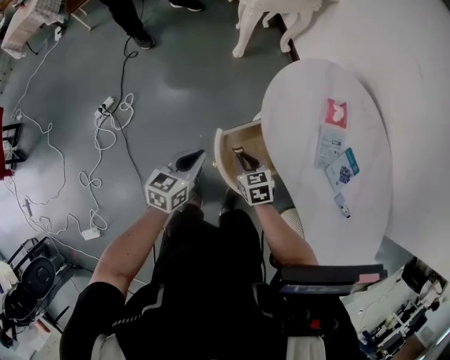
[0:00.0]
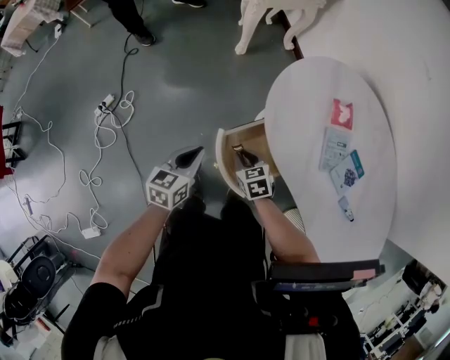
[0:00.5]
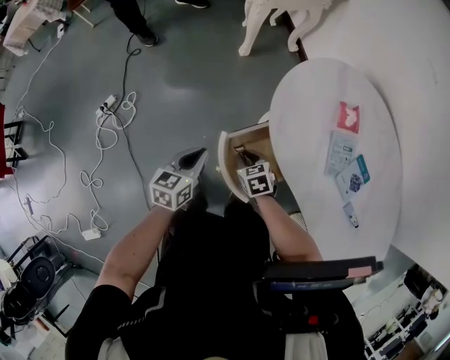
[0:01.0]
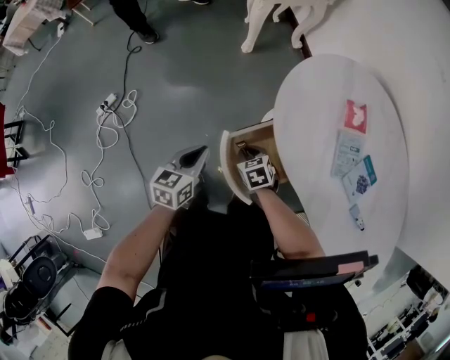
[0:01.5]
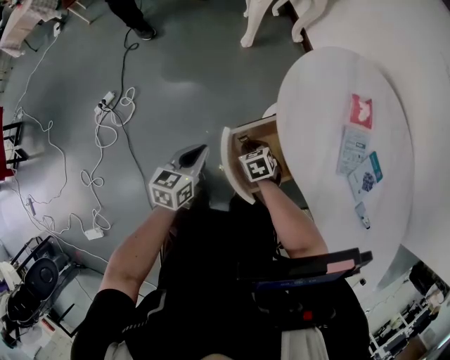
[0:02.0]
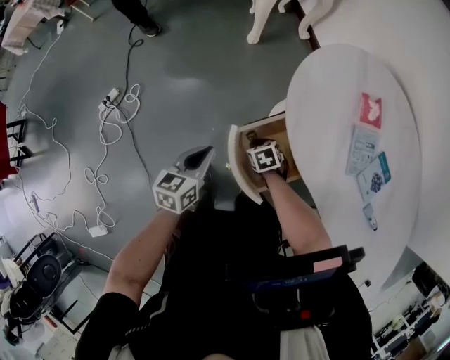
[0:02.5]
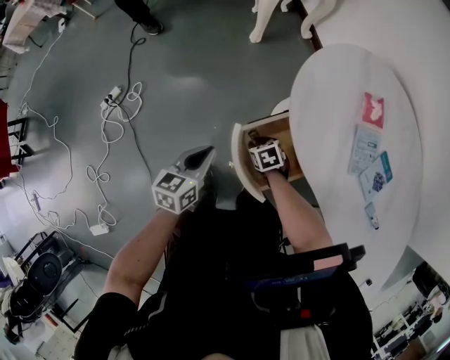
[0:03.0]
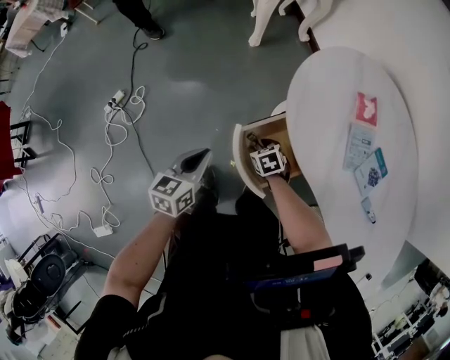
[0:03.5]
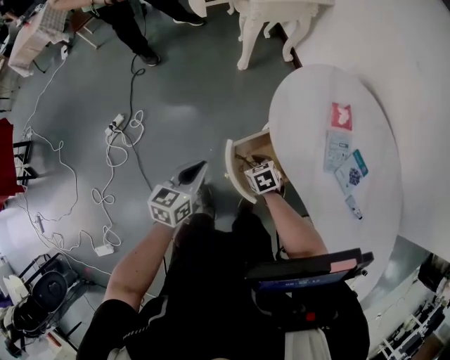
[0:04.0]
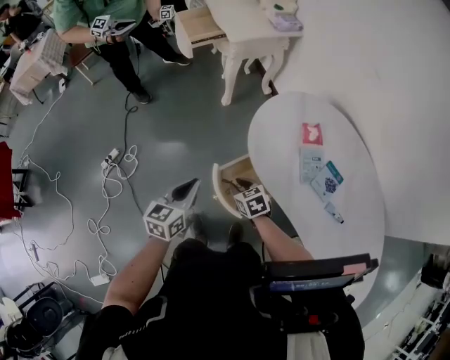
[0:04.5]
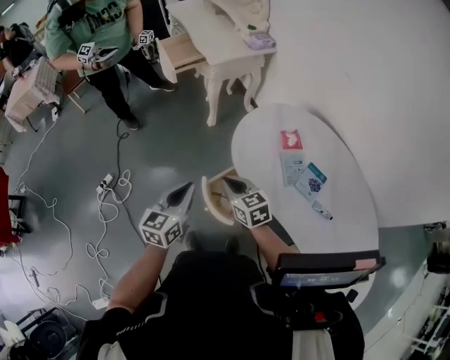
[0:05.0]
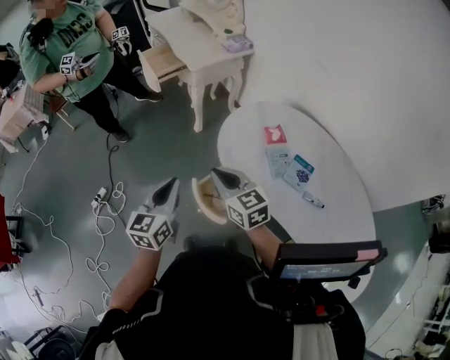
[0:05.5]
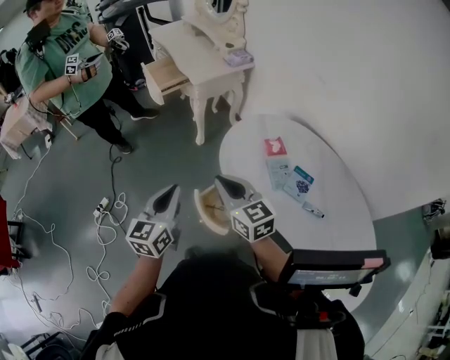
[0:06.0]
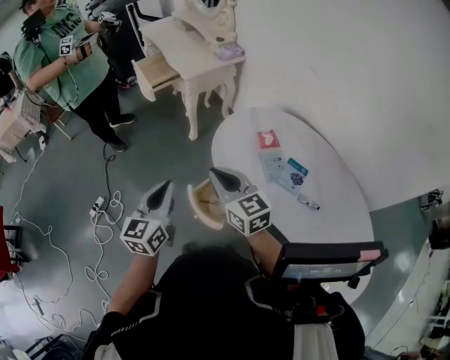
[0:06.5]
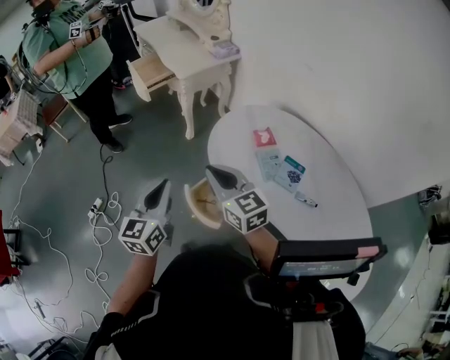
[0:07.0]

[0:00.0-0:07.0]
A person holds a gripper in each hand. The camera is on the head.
0:00.0 to 0:02.0: The right gripper goes approximately 15 cm downward. The left gripper goes approximately 10 cm downward.
0:02.0 to 0:03.5: The left gripper shifts by about 5 cm. The right gripper opens its fingers.
0:03.5 to 0:05.0: The left gripper shifts some 20 cm upward, and rotates approximately 20 degrees, while the right gripper travels upward by some 35 cm, angles its fingers upward, by about 40 degrees, and closes up.
0:05.0 to 0:07.0: The left gripper is displaced upward by about 10 cm. The right gripper moves upward, some 15 cm.

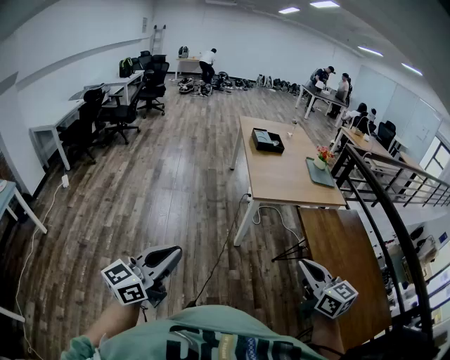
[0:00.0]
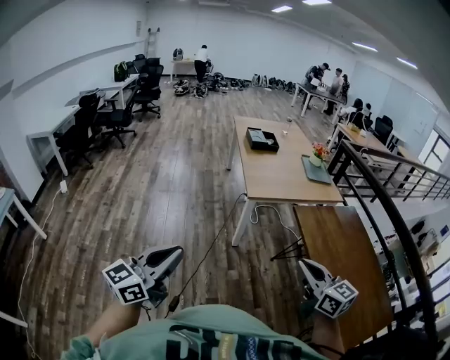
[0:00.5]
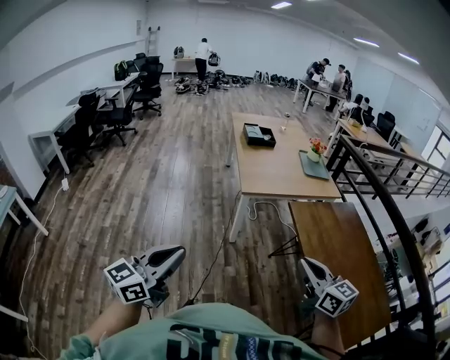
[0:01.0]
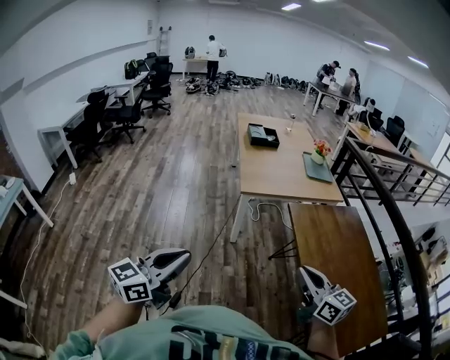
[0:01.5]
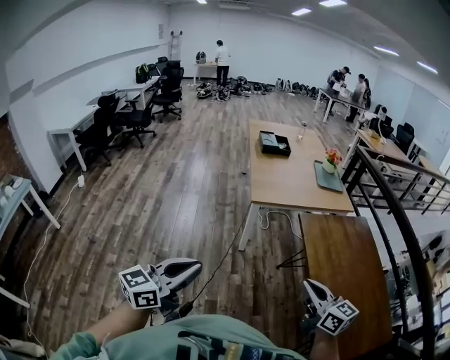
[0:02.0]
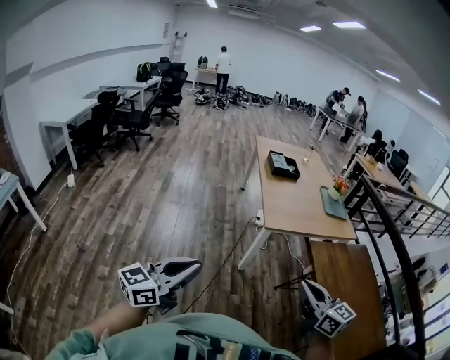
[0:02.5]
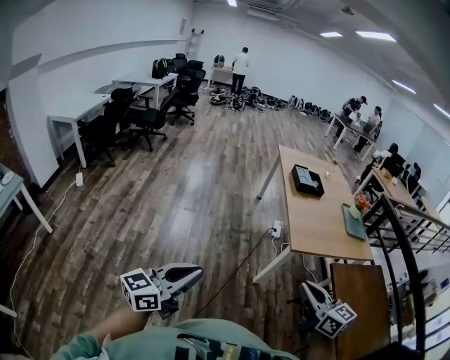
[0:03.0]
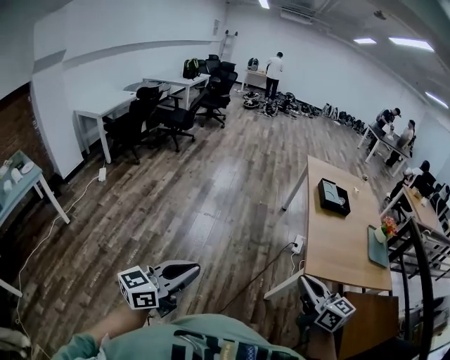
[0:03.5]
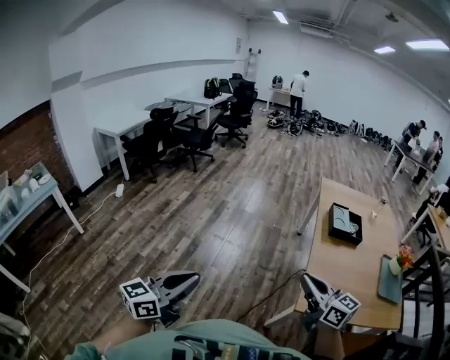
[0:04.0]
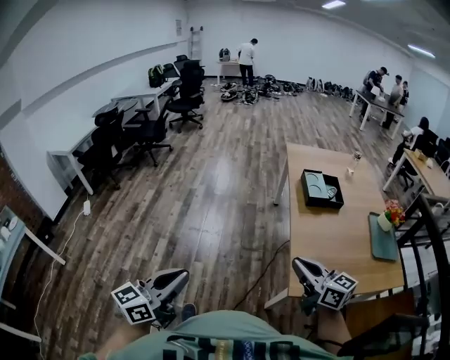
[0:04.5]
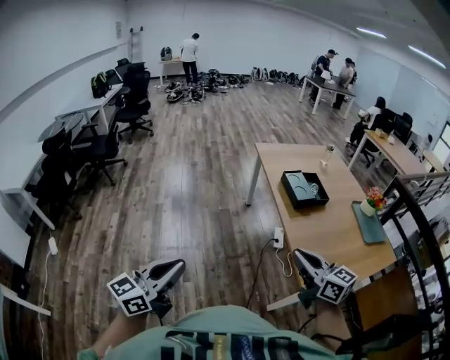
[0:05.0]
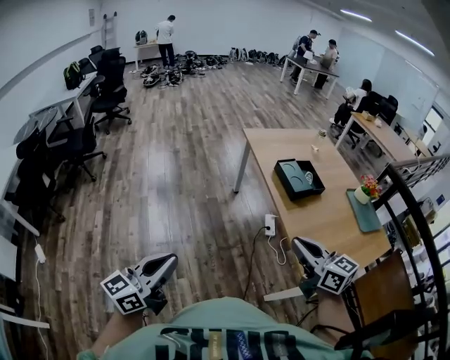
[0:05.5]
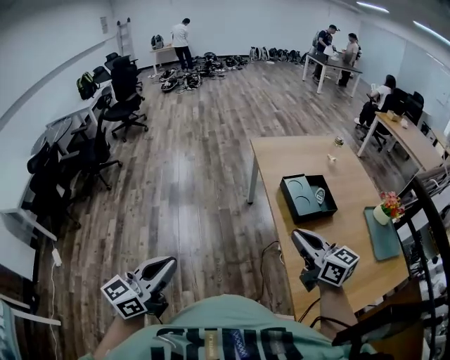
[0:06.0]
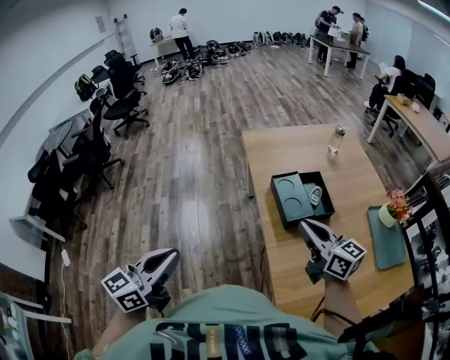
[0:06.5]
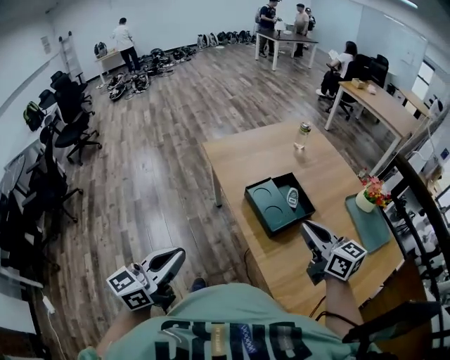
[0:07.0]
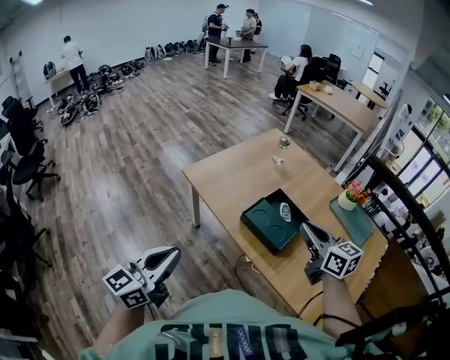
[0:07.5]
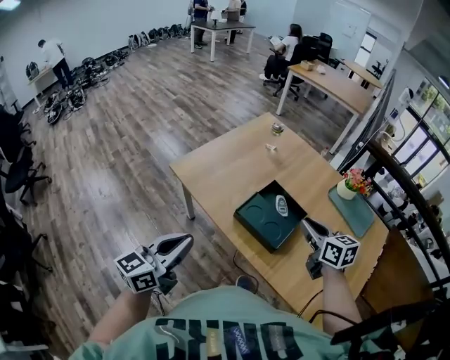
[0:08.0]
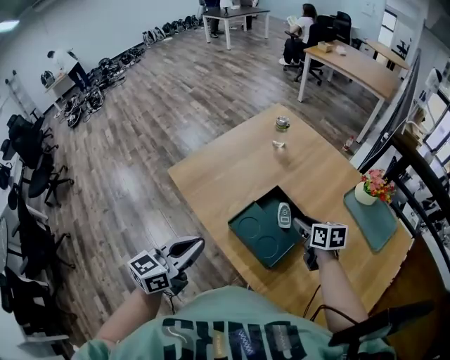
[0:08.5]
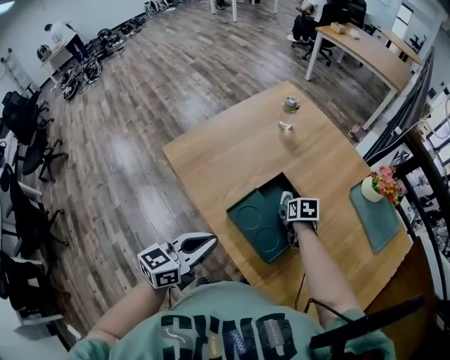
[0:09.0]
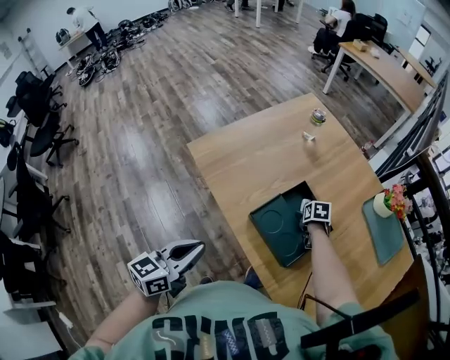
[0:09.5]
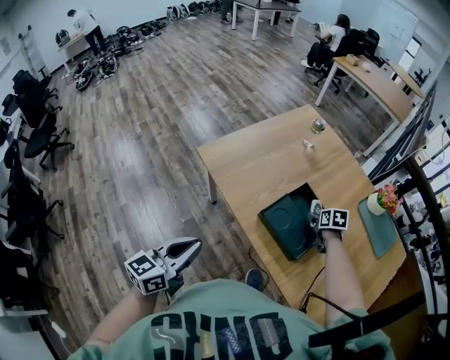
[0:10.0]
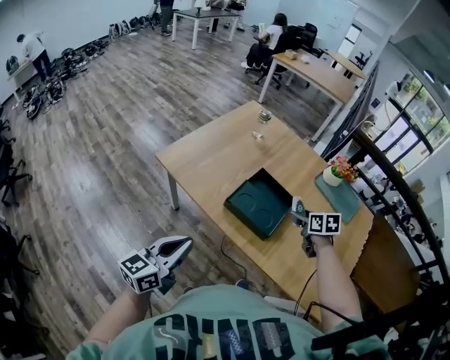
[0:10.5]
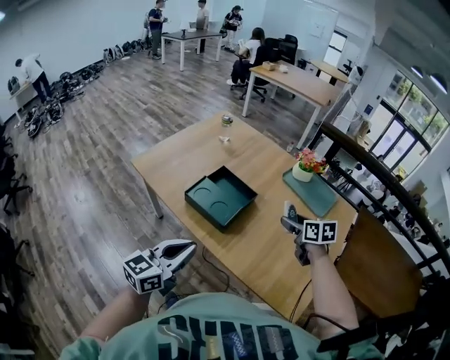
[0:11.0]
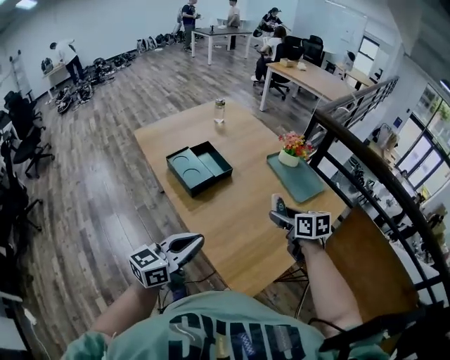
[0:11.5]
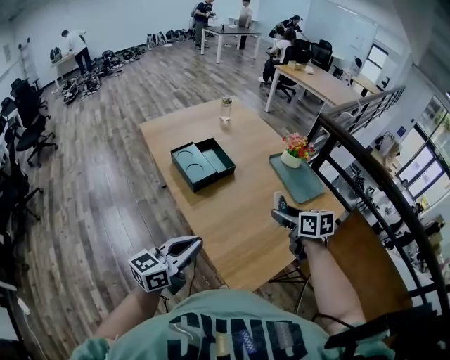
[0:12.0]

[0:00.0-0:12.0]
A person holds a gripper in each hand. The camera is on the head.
0:00.0 to 0:02.0: The grippers both shift to the right by roughly 15 cm.
0:02.0 to 0:04.0: The pair of grippers is taken roughly 50 cm. The left gripper rotates approximately 20 degrees; the right gripper turns by approximately 30 degrees.
0:04.0 to 0:06.0: The right gripper changes place by about 40 cm, and rotates some 30 degrees, while the left gripper shifts by approximately 50 cm, and turns by roughly 20 degrees.
0:06.0 to 0:08.0: The right gripper shifts by about 30 cm, and changes its angle by approximately 50 degrees. Meanwhile the left gripper shifts by approximately 50 cm, and turns by roughly 40 degrees.
0:08.0 to 0:10.0: The left gripper goes some 5 cm downward, and moves about 15 cm to the right and comes back. The right gripper shifts roughly 30 cm downward and forward, tilts its fingers approximately 30 degrees downward, and opens its fingers.
0:10.0 to 0:12.0: The pair of grippers is taken to the right and backward, approximately 50 cm. The right gripper heads upward, covering approximately 20 cm, and turns by some 30 degrees.

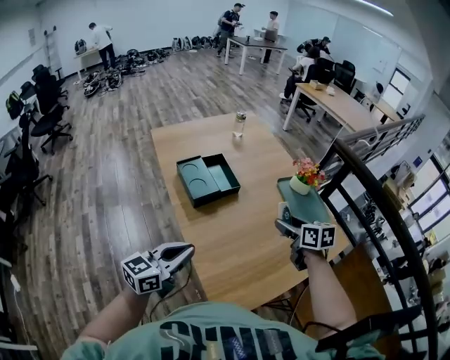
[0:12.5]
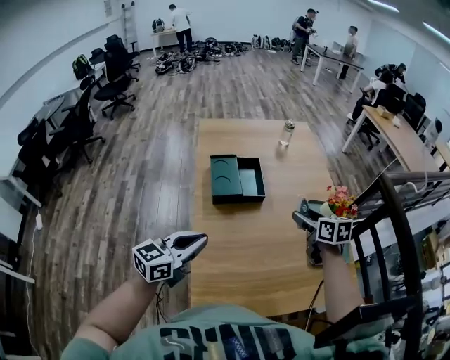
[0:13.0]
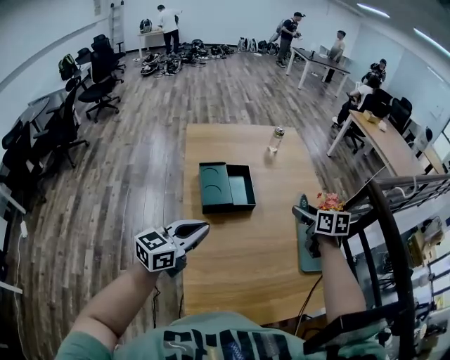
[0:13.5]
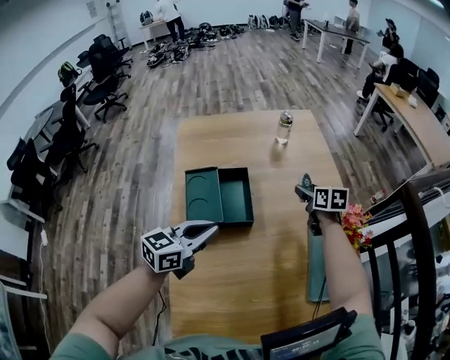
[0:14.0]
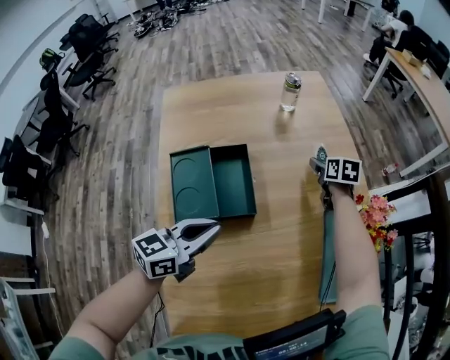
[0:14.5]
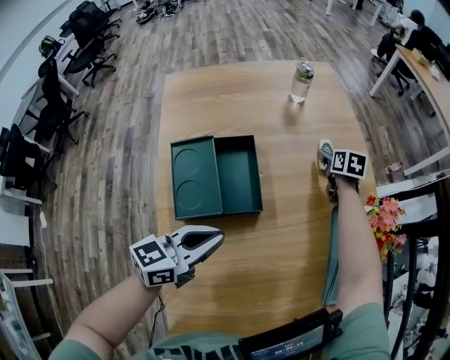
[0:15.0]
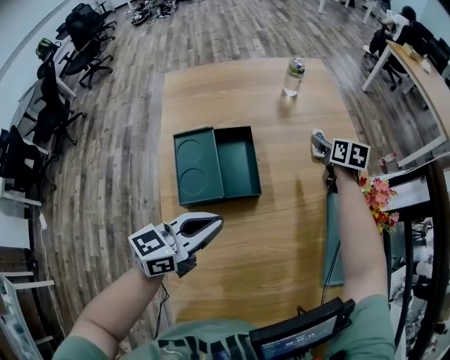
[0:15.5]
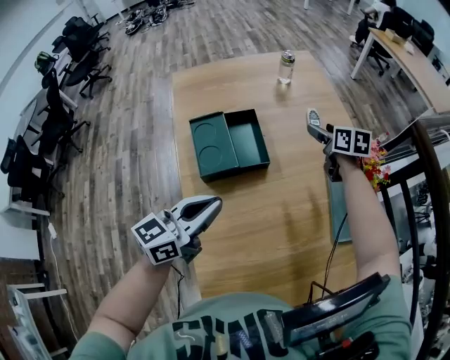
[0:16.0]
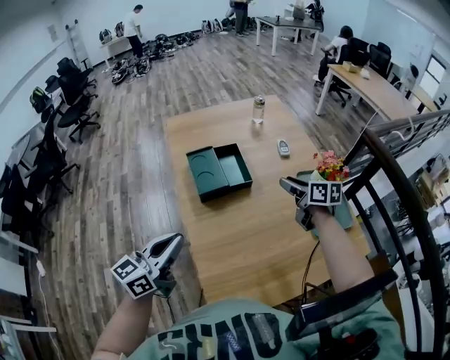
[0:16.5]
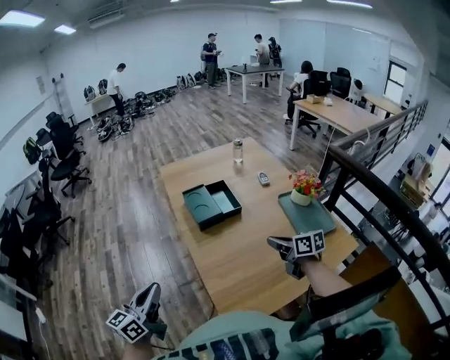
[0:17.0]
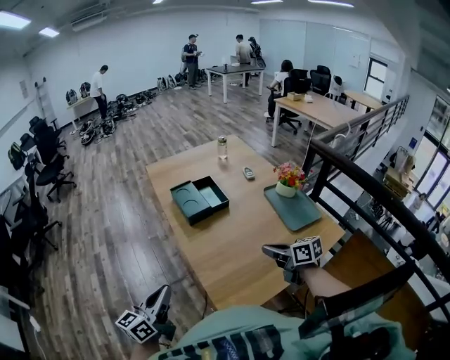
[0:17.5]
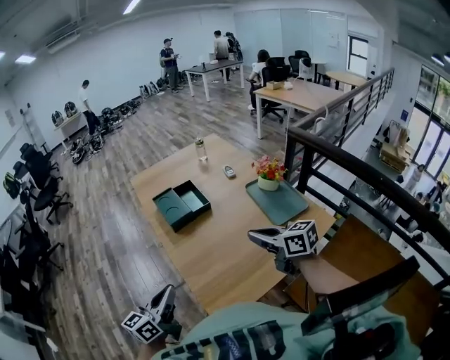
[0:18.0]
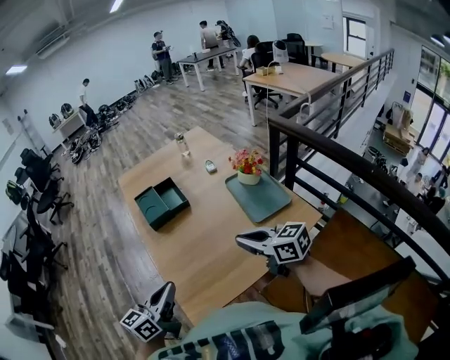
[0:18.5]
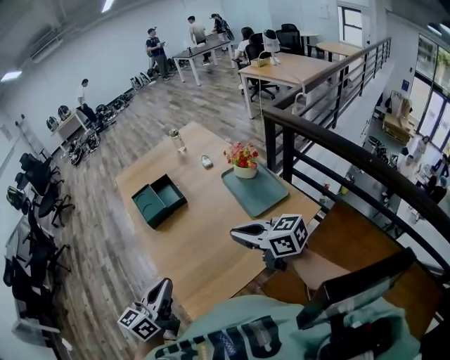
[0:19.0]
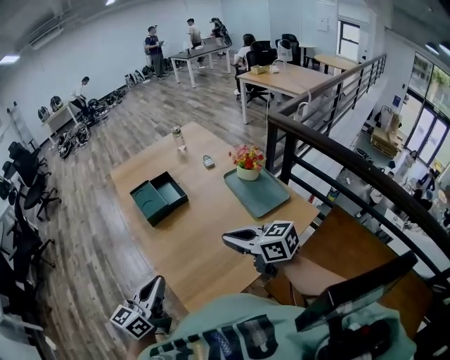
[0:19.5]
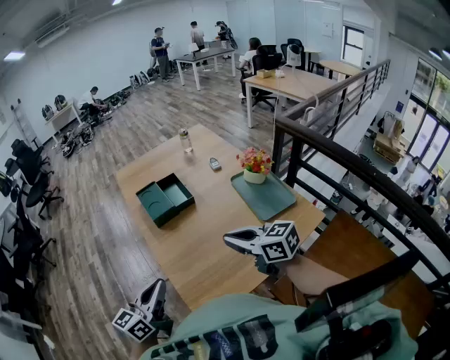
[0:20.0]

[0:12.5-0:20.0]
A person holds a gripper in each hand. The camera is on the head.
0:12.5 to 0:14.5: The right gripper travels forward and downward by approximately 60 cm. The left gripper heads forward and downward, covering about 35 cm.
0:14.5 to 0:16.5: Both grippers move backward and upward, about 35 cm. The right gripper changes its angle by roughly 30 degrees.
0:16.5 to 0:18.0: The right gripper goes some 30 cm backward, and closes. Meanwhile the left gripper heads backward, covering approximately 15 cm.
0:18.0 to 0:20.0: The left gripper reaches about 15 cm to the right, then returns. The right gripper moves some 10 cm to the right and comes back.
